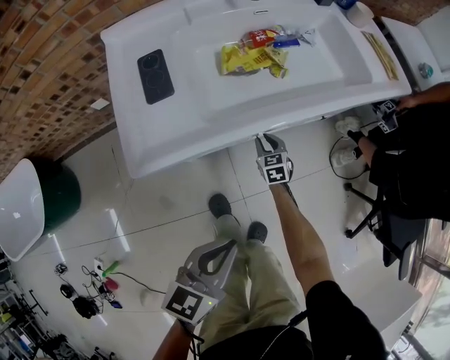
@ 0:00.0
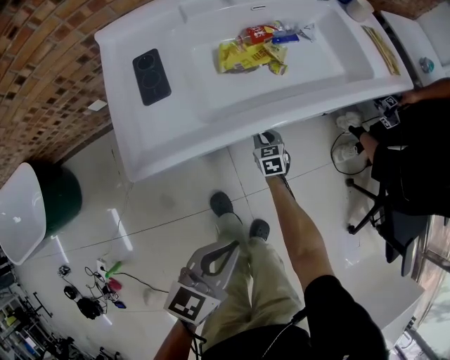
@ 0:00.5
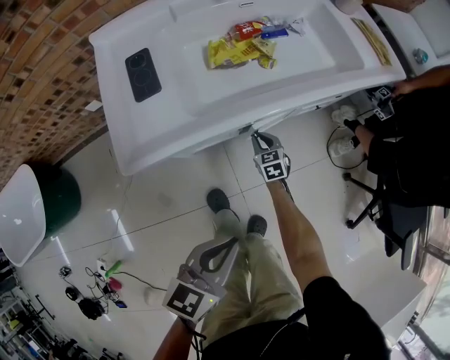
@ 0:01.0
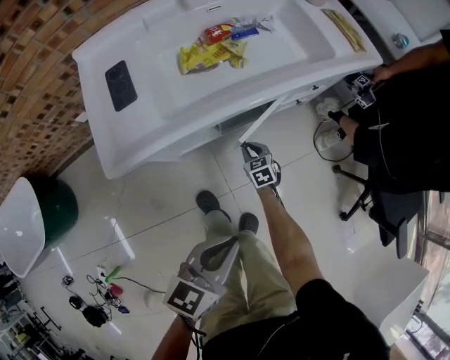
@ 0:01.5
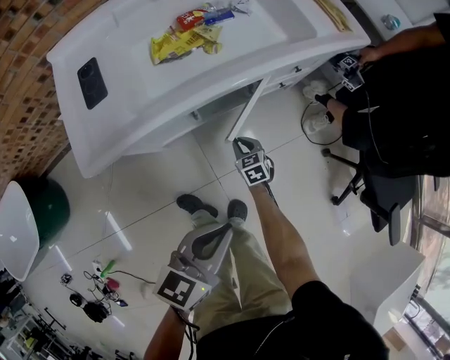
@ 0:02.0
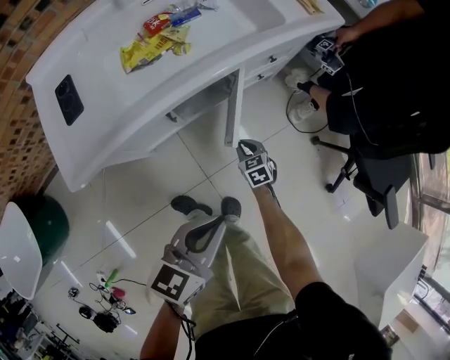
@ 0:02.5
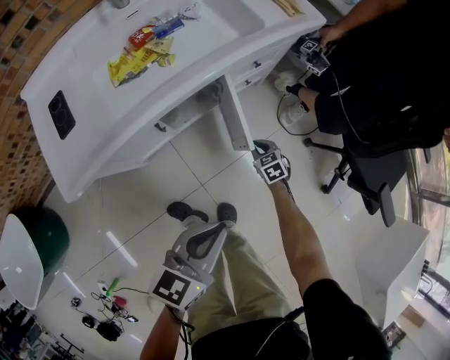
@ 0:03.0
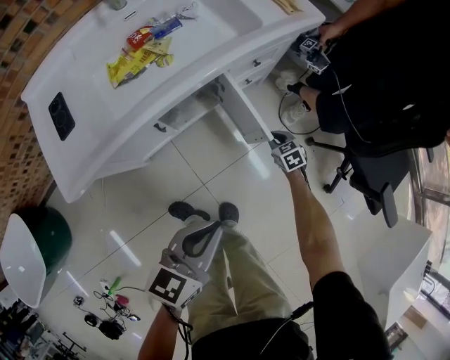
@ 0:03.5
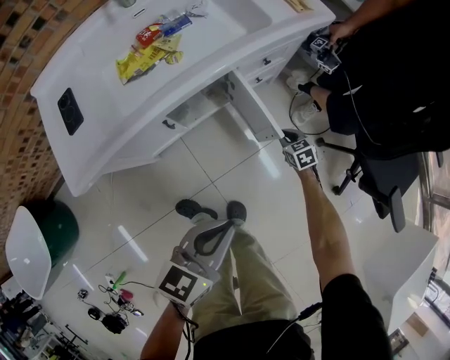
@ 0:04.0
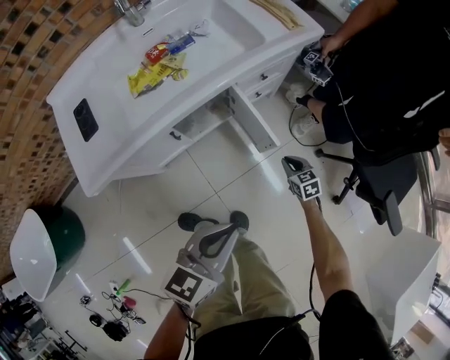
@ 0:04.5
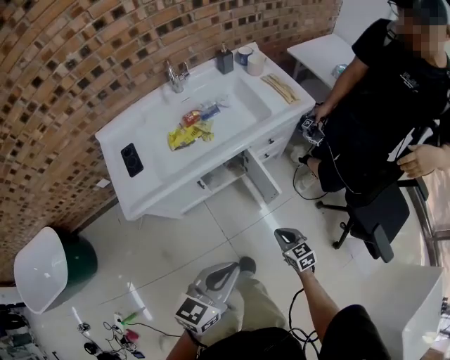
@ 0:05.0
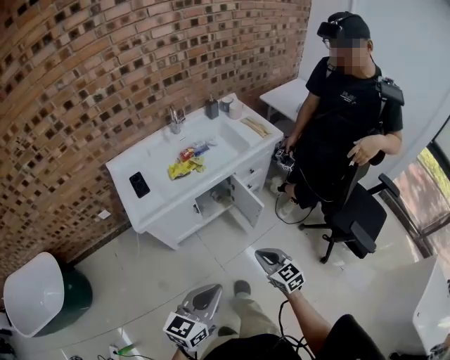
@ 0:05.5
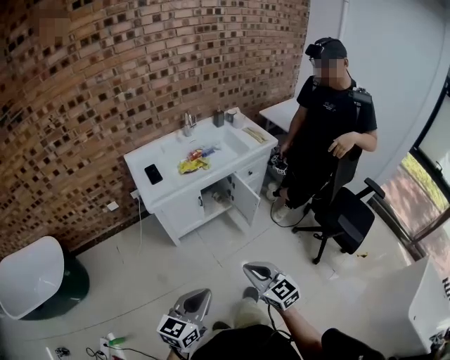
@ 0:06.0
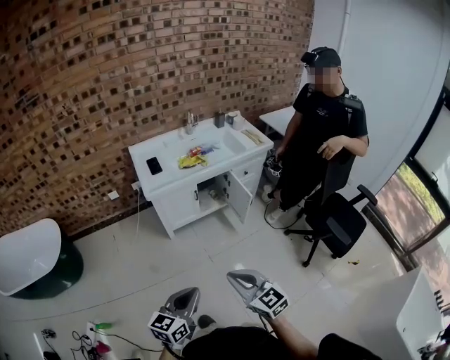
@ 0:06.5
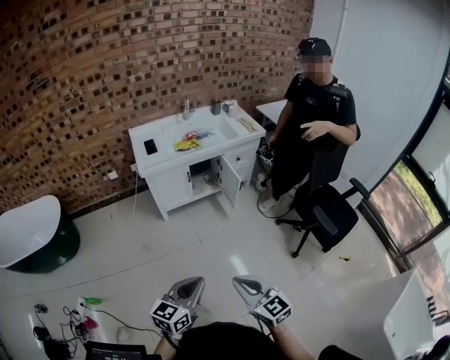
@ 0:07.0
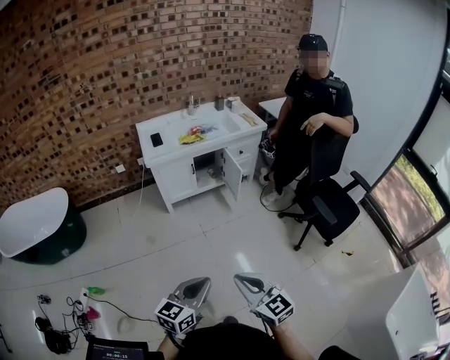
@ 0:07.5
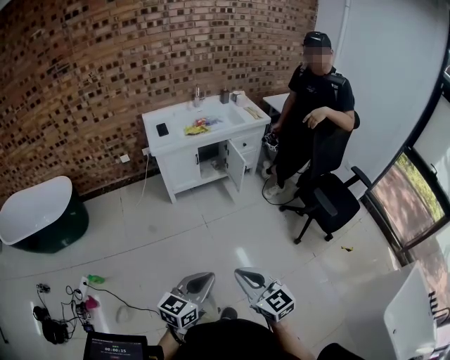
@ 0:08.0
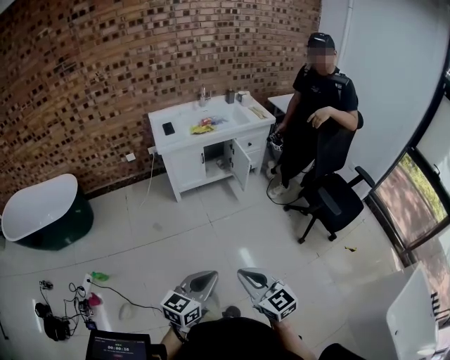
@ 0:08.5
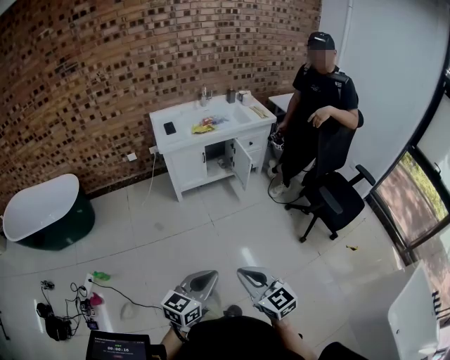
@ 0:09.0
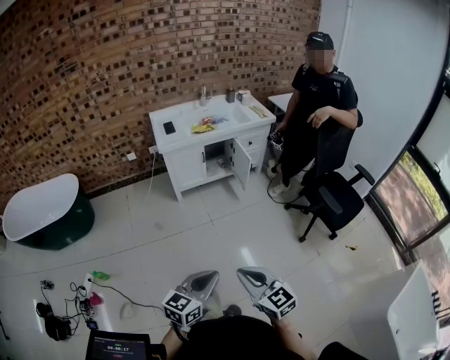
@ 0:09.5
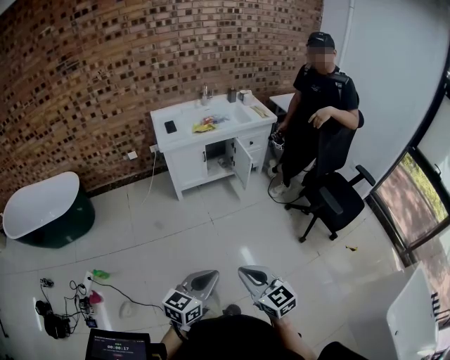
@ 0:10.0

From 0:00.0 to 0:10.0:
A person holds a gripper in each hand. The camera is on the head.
From 0:00.0 to 0:02.0: The left gripper is displaced to the right by roughly 10 cm. The right gripper shifts approximately 15 cm to the right and backward.
From 0:02.0 to 0:04.0: The left gripper moves to the right, approximately 10 cm, while the right gripper travels to the right by some 25 cm.
From 0:04.0 to 0:06.0: The pair of grippers is taken backward, roughly 50 cm. The right gripper goes roughly 50 cm upward, and points its fingers approximately 40 degrees further upward. The left gripper moves upward, approximately 20 cm.
From 0:06.0 to 0:08.0: The left gripper is displaced backward and to the right by about 35 cm; the right gripper shifts some 40 cm backward.
From 0:08.0 to 0:10.0: There are only small adjustments of the grippers.

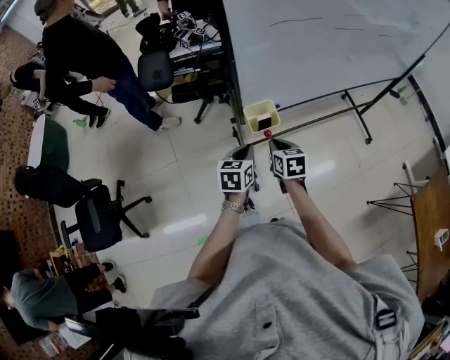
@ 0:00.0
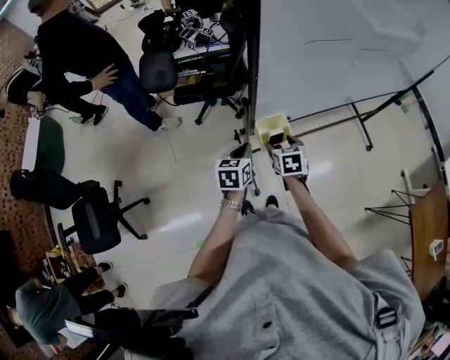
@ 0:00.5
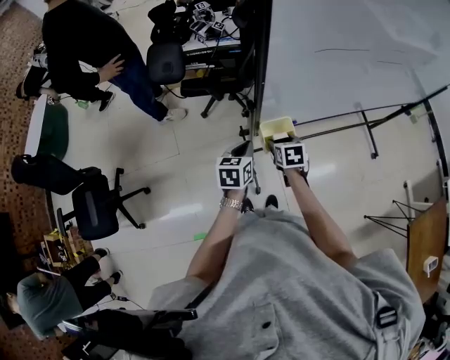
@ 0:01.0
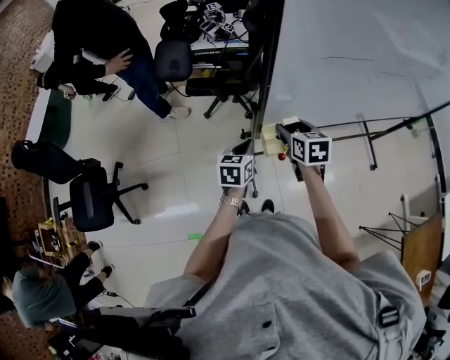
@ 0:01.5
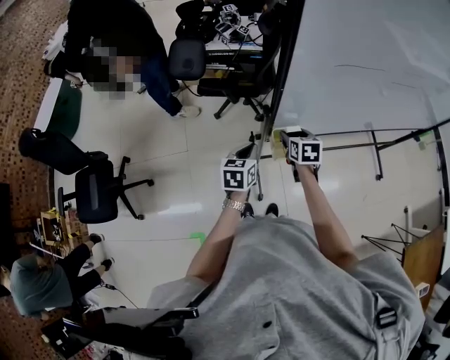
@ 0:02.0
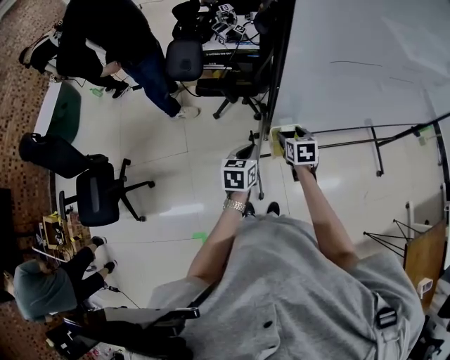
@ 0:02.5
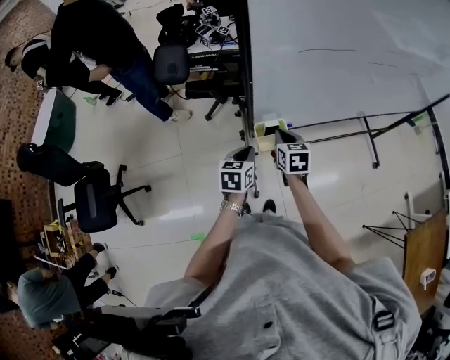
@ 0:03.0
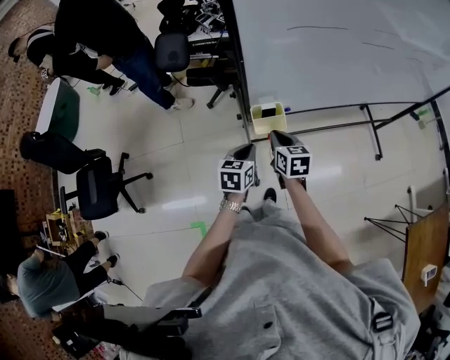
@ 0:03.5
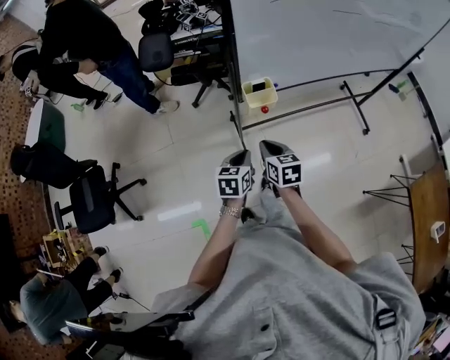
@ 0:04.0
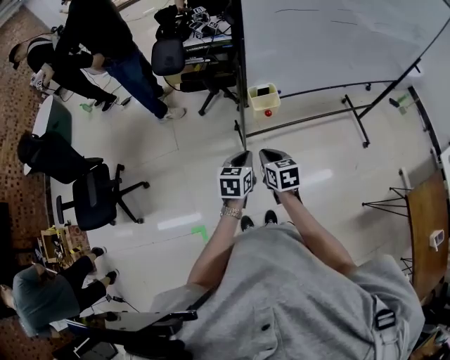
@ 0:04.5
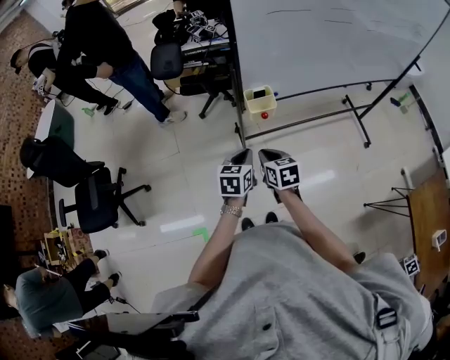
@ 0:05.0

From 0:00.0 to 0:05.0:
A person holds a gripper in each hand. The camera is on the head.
From 0:00.0 to 0:02.5: The right gripper shifts some 15 cm forward, and opens up. The left gripper is displaced forward and to the left by approximately 10 cm.
From 0:02.5 to 0:05.0: The grippers both shift backward by roughly 25 cm. The right gripper closes up.

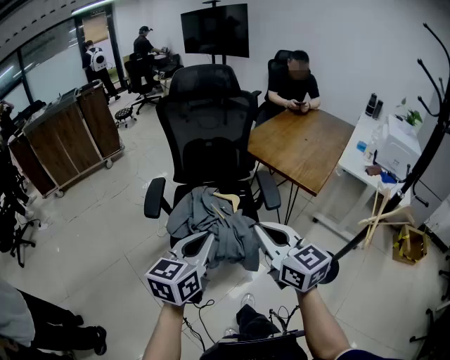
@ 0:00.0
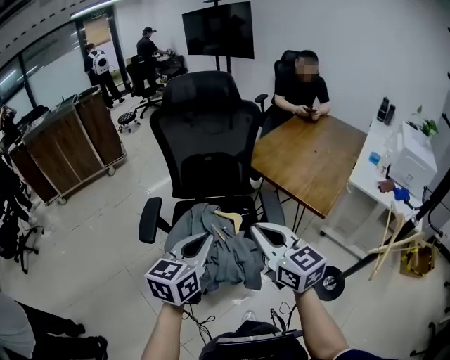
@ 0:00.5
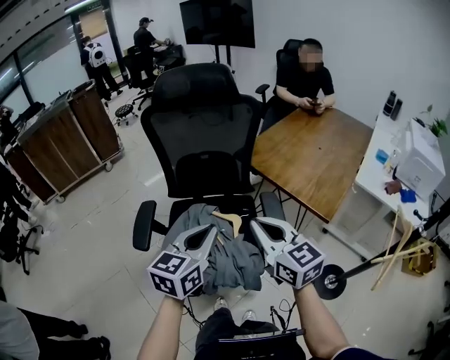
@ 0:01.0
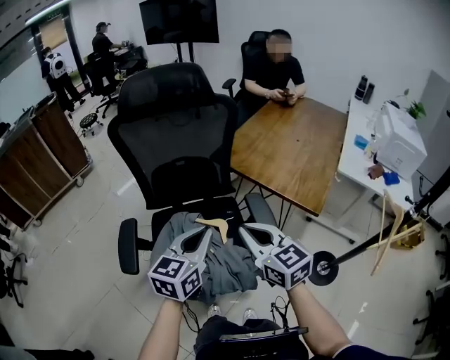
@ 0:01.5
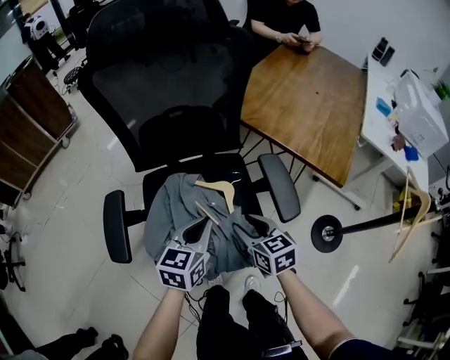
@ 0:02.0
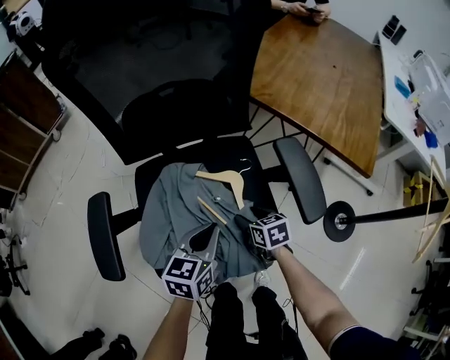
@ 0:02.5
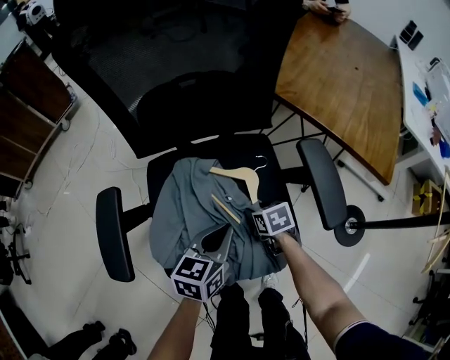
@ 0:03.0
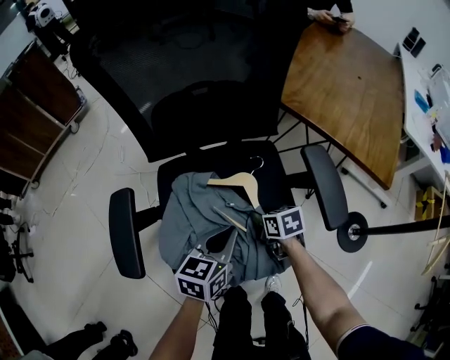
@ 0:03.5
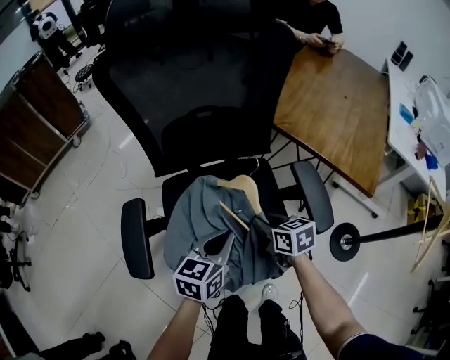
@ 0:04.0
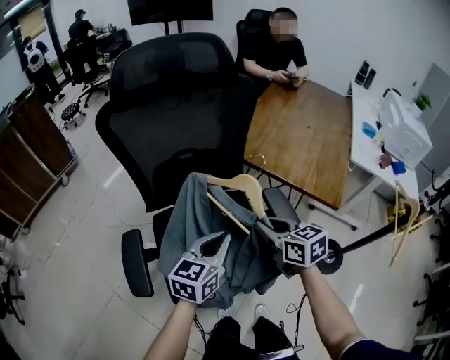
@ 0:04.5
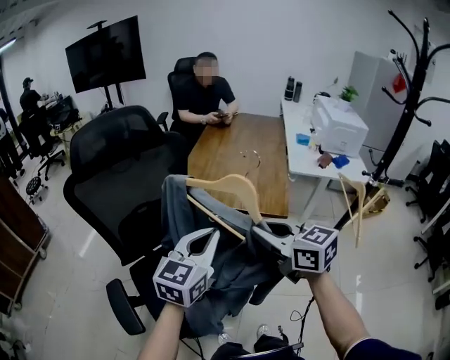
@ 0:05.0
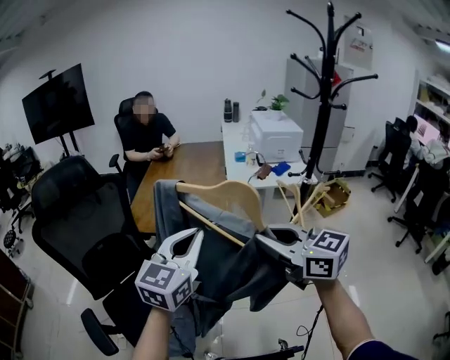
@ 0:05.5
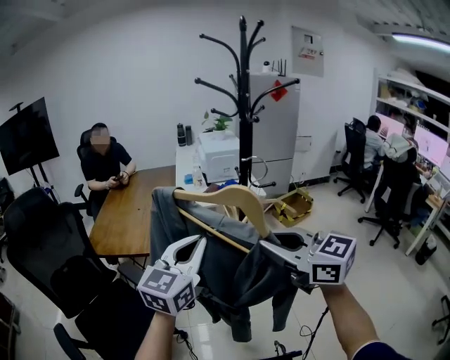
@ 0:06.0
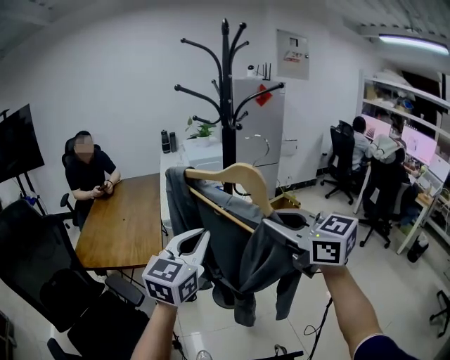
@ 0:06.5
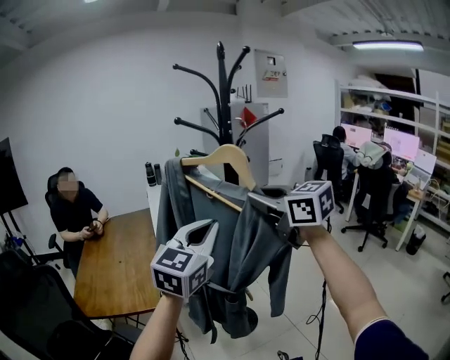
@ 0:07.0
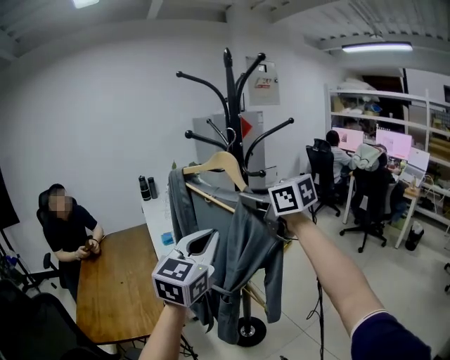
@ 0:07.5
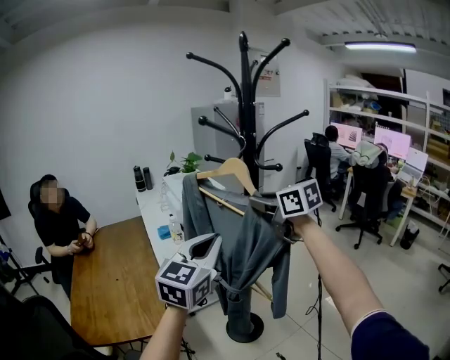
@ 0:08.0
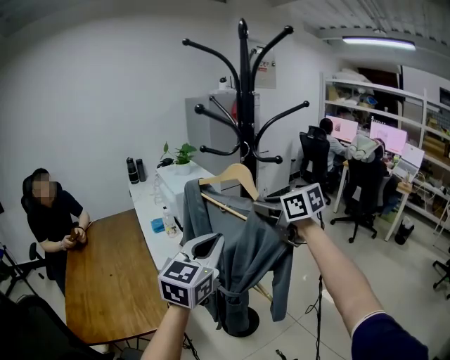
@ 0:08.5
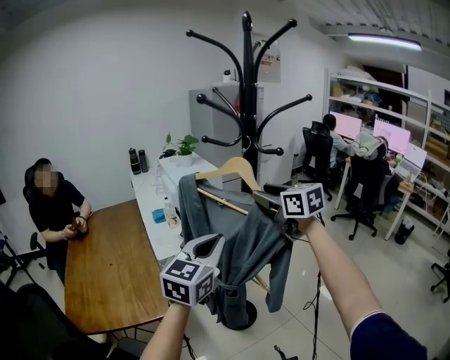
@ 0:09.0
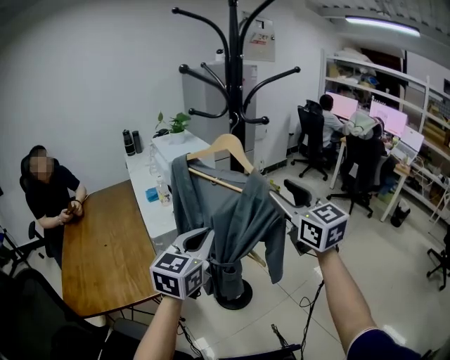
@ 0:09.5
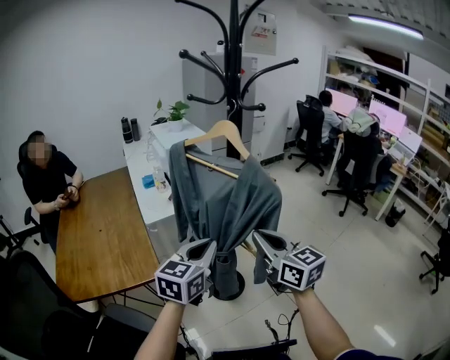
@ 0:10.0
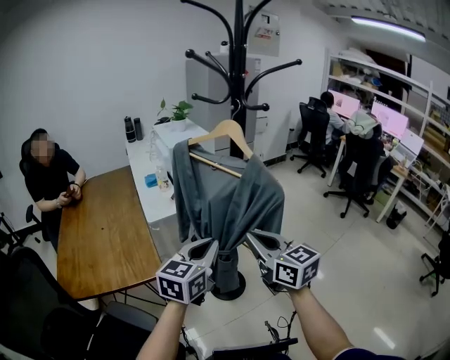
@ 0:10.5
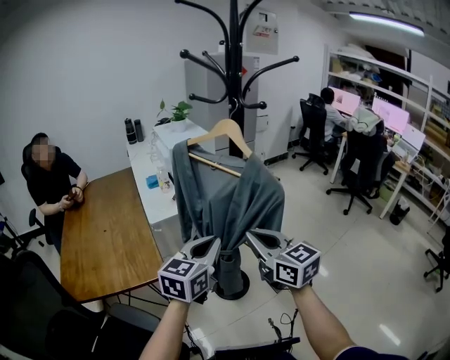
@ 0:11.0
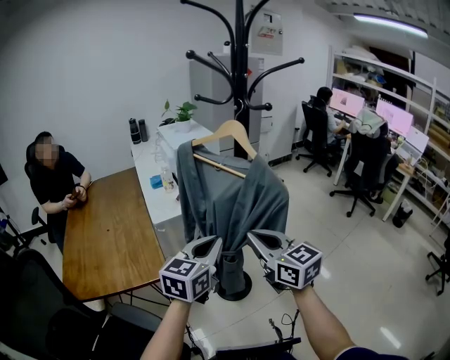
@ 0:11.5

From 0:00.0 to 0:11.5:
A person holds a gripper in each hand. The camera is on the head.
From 0:00.0 to 0:02.0: The right gripper goes approximately 40 cm downward and forward, swivels about 30 degrees, and opens. Meanwhile the left gripper heads forward and downward, covering about 35 cm.
From 0:02.0 to 0:04.0: The right gripper travels forward by some 5 cm, reaches roughly 25 cm downward, then returns, and closes.
From 0:04.0 to 0:06.0: The two grippers travel together, approximately 50 cm. The right gripper tilts its fingers about 40 degrees upward. Meanwhile the left gripper tips its fingers upward by approximately 30 degrees.
From 0:06.0 to 0:07.5: The left gripper moves forward and upward, some 25 cm, and rotates approximately 20 degrees, while the right gripper travels forward by roughly 35 cm, and rotates roughly 20 degrees.
From 0:07.5 to 0:09.5: The right gripper shifts about 15 cm downward, to the right and backward, swivels some 30 degrees, and opens up, while the left gripper heads downward, covering about 15 cm.
From 0:09.5 to 0:11.5: The left gripper is displaced downward by about 5 cm. The right gripper goes about 15 cm downward, to the left and backward, and closes up.
